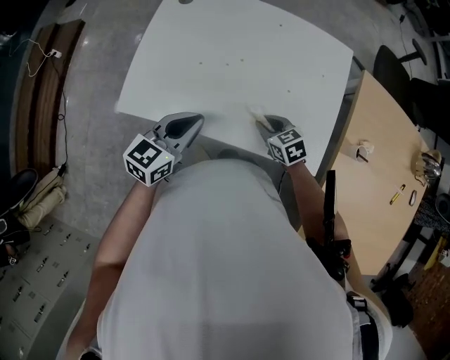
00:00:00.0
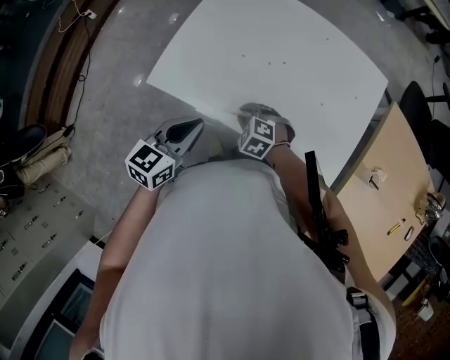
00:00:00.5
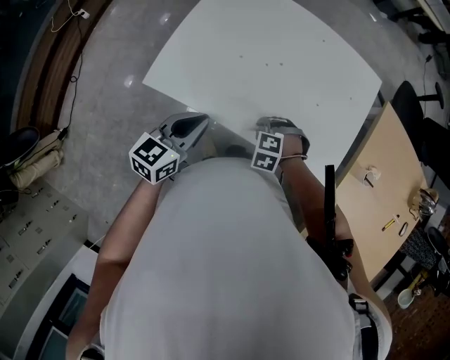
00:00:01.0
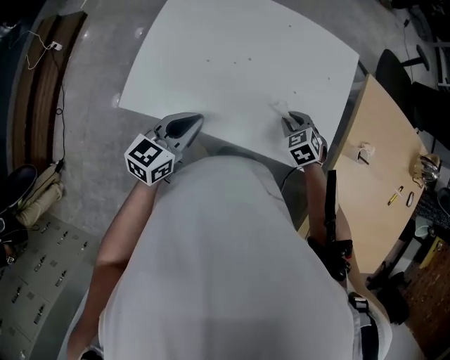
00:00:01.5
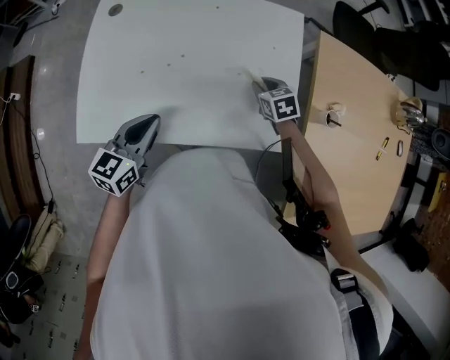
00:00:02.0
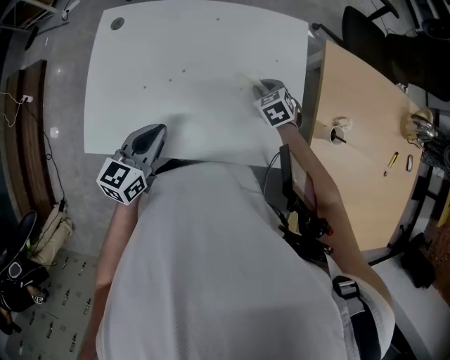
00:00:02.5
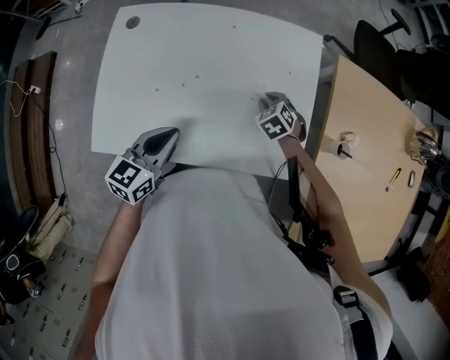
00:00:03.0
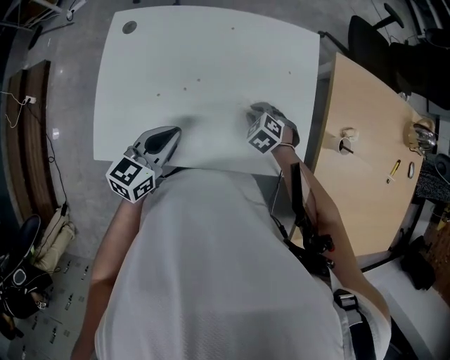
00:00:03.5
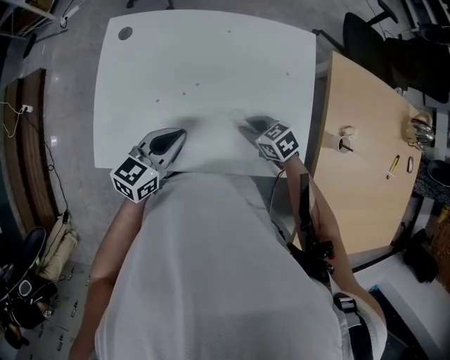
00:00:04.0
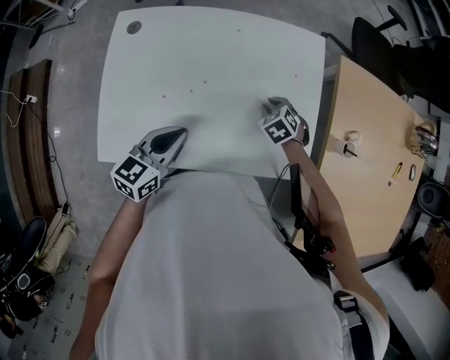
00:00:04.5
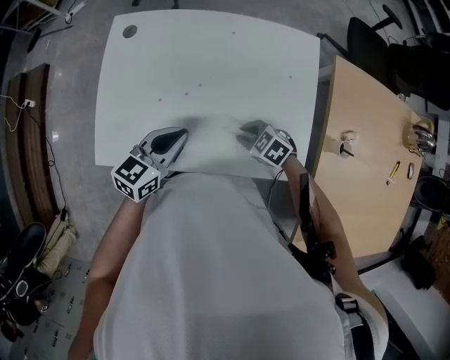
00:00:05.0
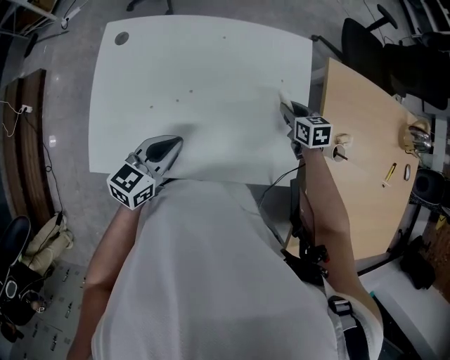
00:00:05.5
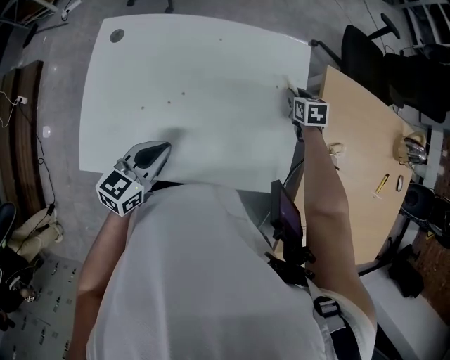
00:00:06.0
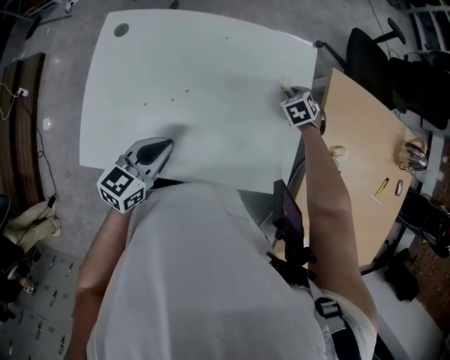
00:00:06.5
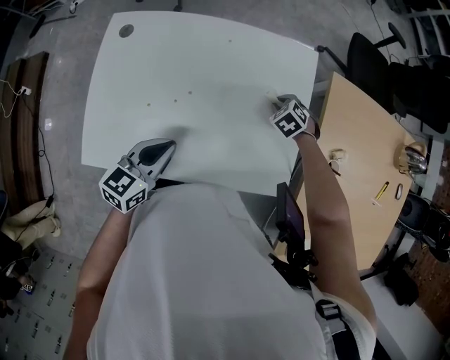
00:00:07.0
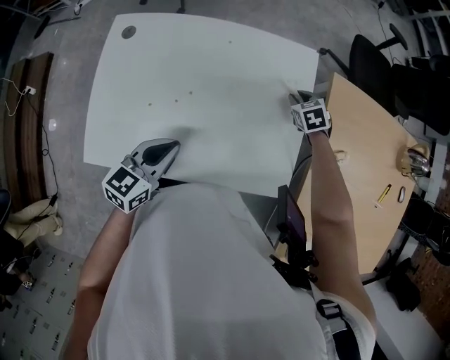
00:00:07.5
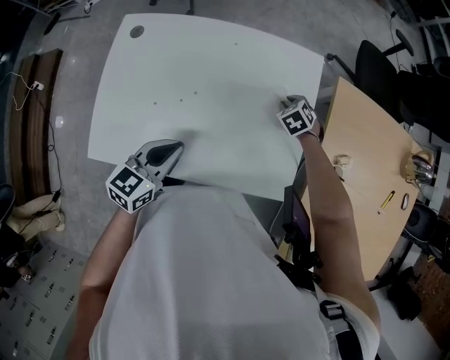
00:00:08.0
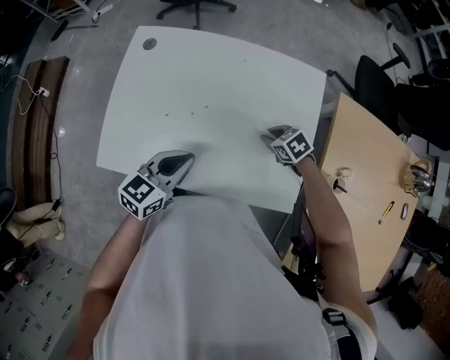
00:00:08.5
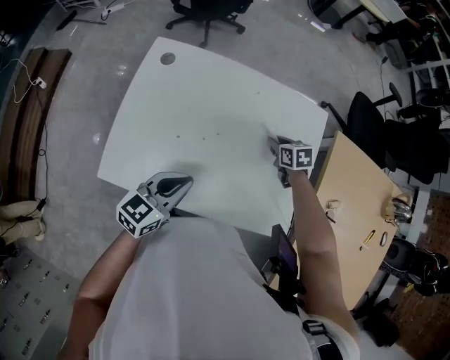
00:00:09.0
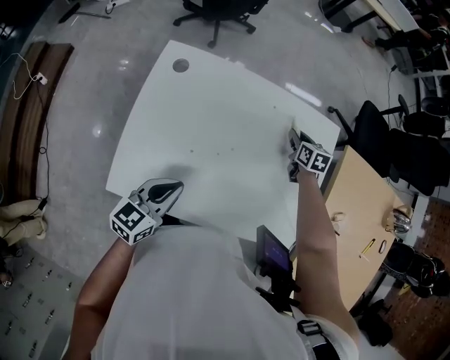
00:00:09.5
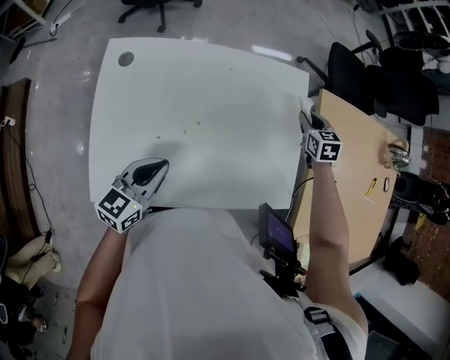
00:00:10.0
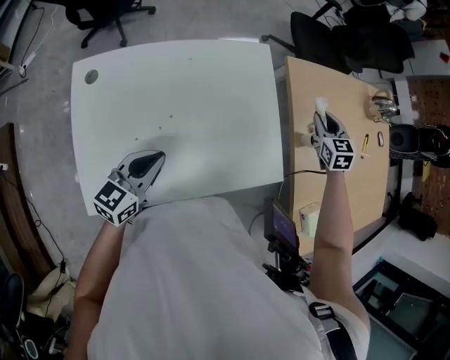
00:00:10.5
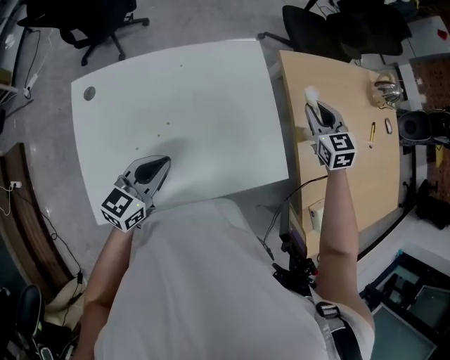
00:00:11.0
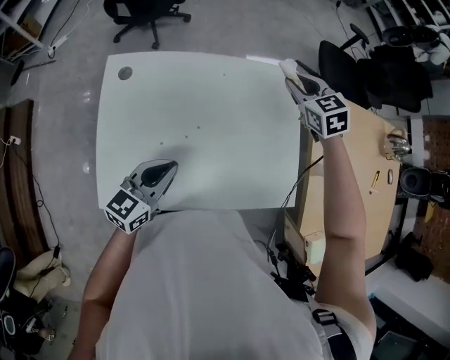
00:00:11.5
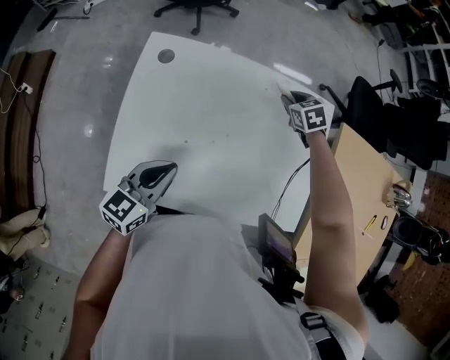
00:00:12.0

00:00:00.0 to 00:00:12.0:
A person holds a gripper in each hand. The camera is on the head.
00:00:00.0 to 00:00:02.0: The right gripper ends up roughly 15 cm from where it was, and rotates some 20 degrees.
00:00:02.0 to 00:00:04.0: The left gripper ends up some 5 cm from where it was; the right gripper is displaced to the left and backward by roughly 10 cm, and rotates approximately 20 degrees.
00:00:04.0 to 00:00:06.0: The right gripper changes place by approximately 30 cm, and changes its angle by about 40 degrees.
00:00:06.0 to 00:00:08.0: The right gripper moves to the left, roughly 5 cm, and changes its angle by roughly 40 degrees.
00:00:08.0 to 00:00:10.0: The left gripper ends up roughly 10 cm from where it was. The right gripper is displaced upward by approximately 10 cm, and rotates about 40 degrees.
00:00:10.0 to 00:00:12.0: The right gripper goes upward and returns, roughly 15 cm each way, and rotates some 30 degrees.

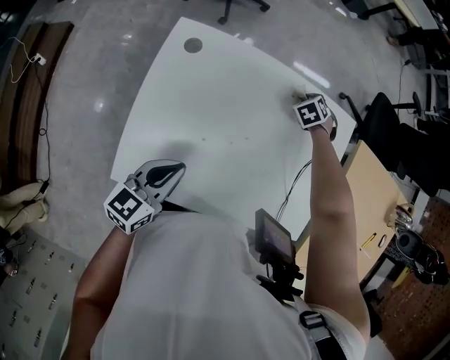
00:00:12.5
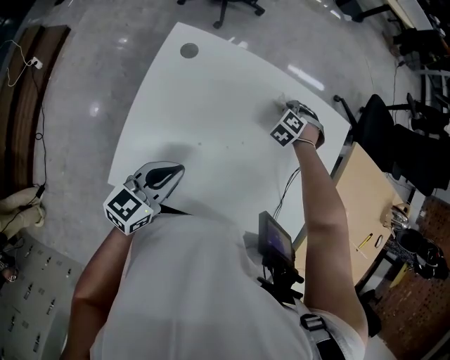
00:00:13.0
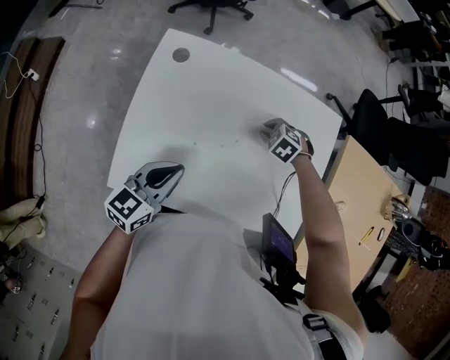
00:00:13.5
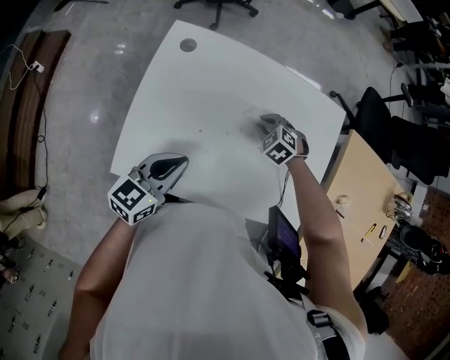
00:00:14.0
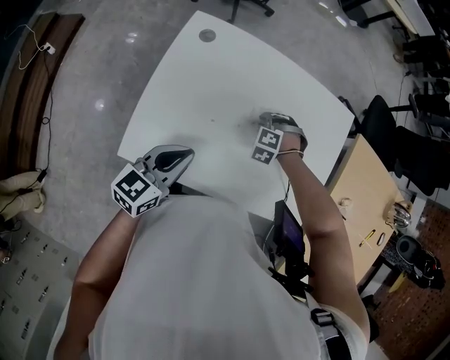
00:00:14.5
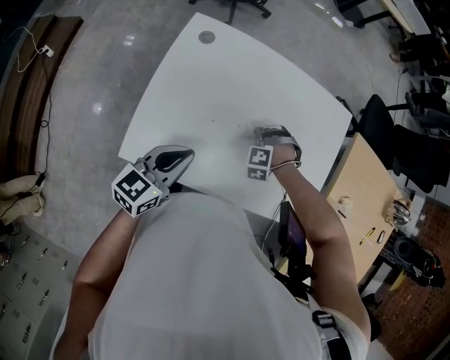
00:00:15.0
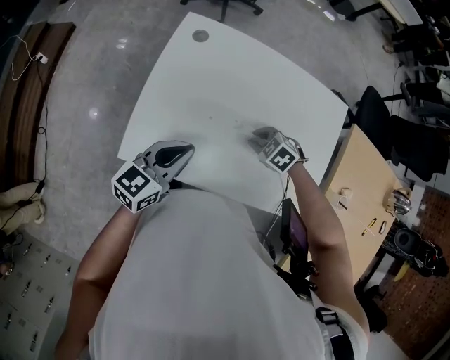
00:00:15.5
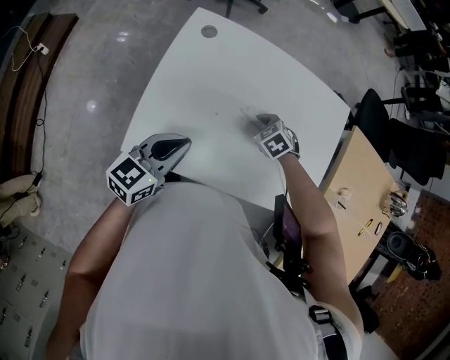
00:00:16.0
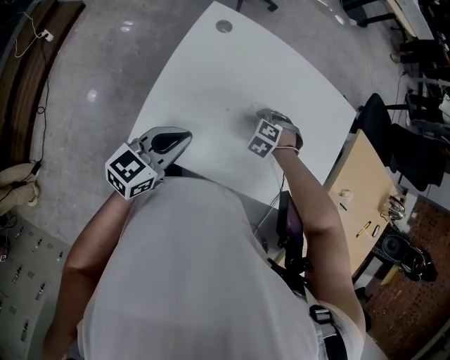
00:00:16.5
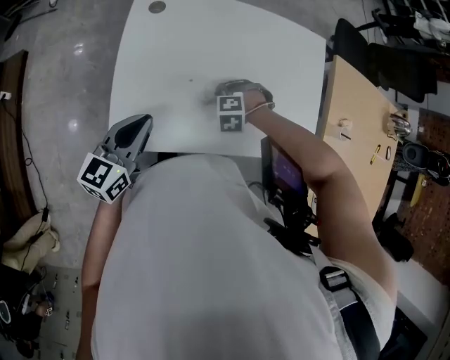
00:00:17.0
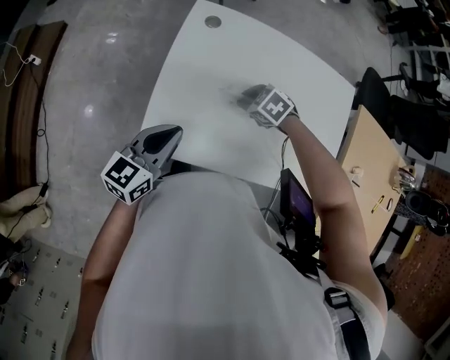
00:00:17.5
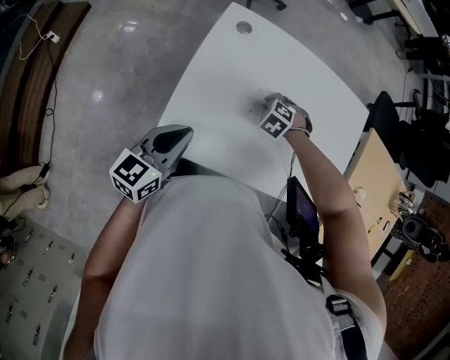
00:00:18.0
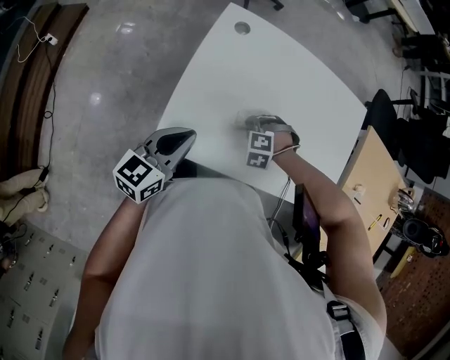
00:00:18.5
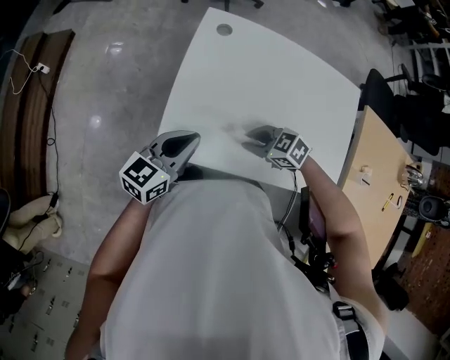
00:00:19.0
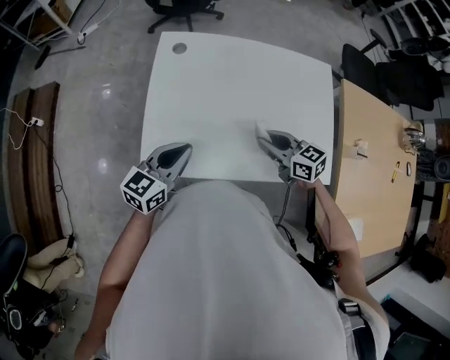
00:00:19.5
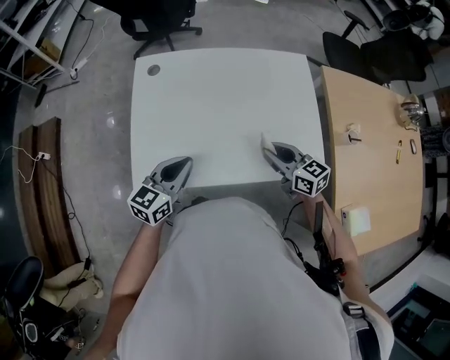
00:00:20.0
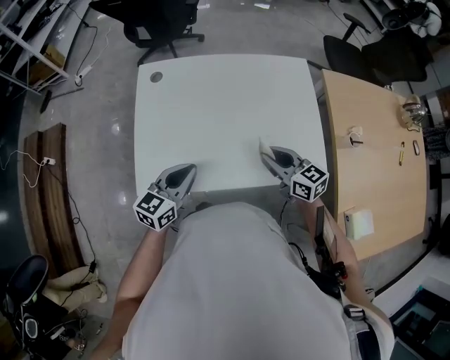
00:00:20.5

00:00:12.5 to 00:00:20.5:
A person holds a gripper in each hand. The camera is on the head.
00:00:12.5 to 00:00:14.5: The right gripper shifts by approximately 25 cm, and twists about 50 degrees counterclockwise, seen from behind.
00:00:14.5 to 00:00:16.5: The left gripper shifts by approximately 5 cm.
00:00:16.5 to 00:00:18.5: The left gripper changes place by approximately 5 cm. The right gripper moves roughly 10 cm.
00:00:18.5 to 00:00:20.5: The right gripper ends up approximately 25 cm from where it was, and tips its fingers upward by roughly 60 degrees. The left gripper changes place by approximately 15 cm.

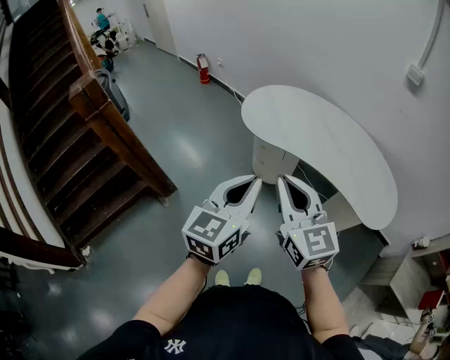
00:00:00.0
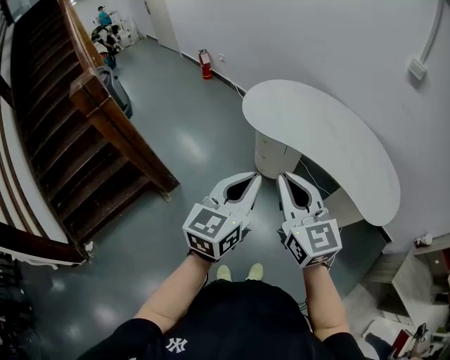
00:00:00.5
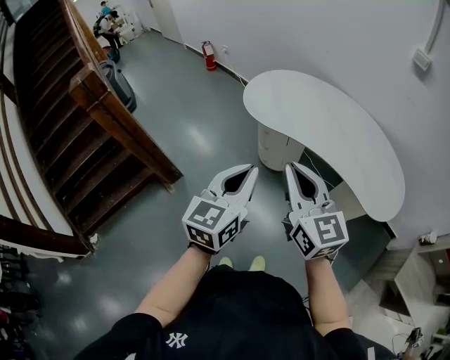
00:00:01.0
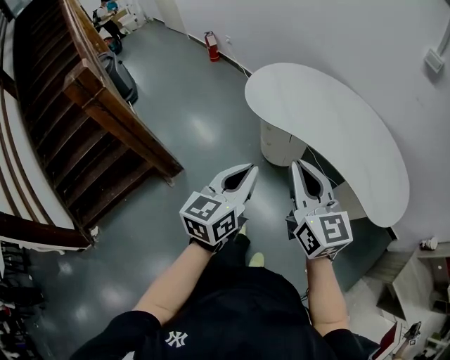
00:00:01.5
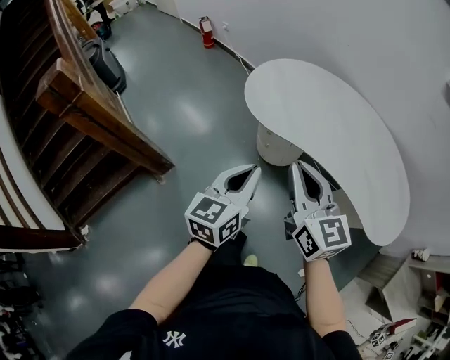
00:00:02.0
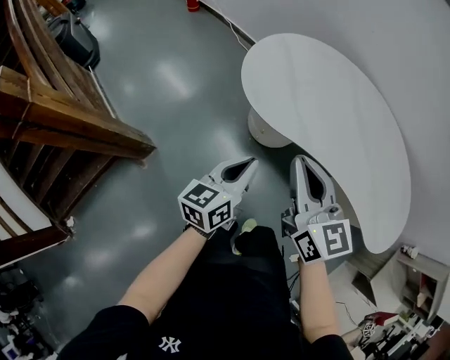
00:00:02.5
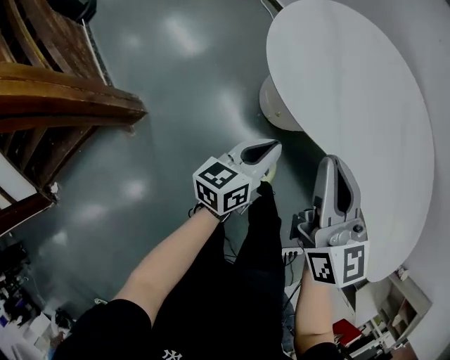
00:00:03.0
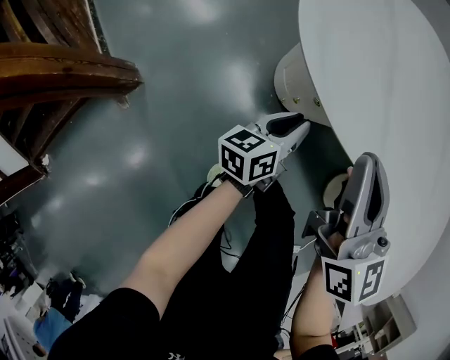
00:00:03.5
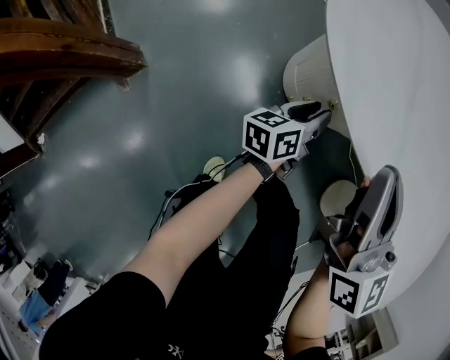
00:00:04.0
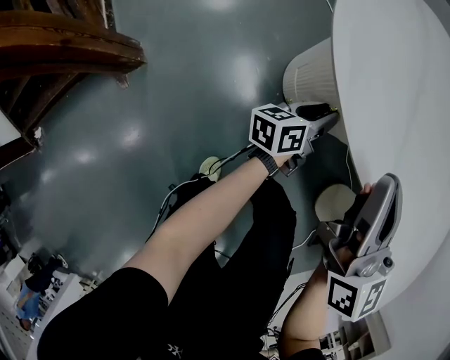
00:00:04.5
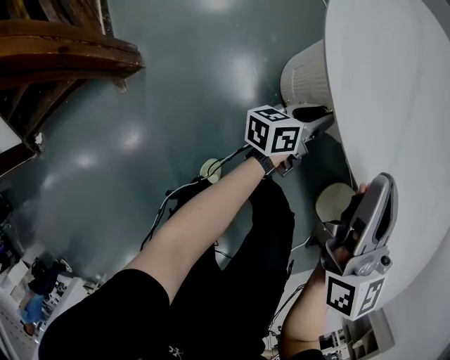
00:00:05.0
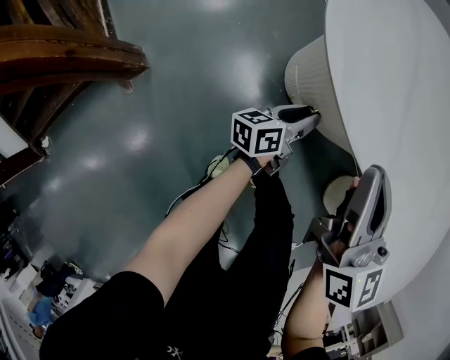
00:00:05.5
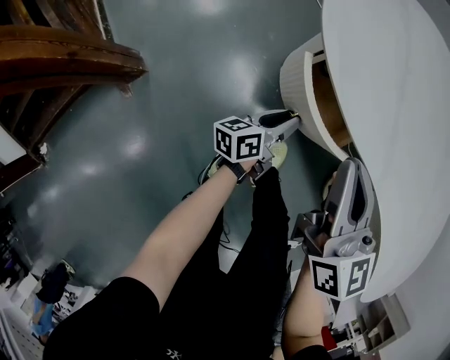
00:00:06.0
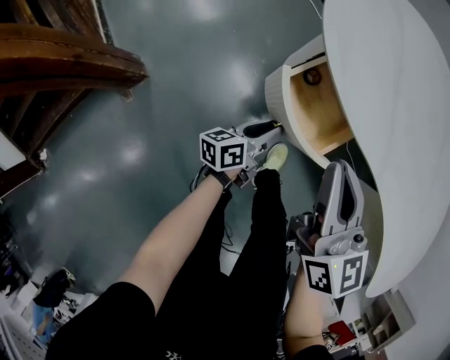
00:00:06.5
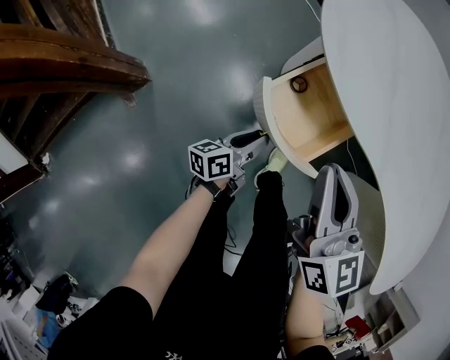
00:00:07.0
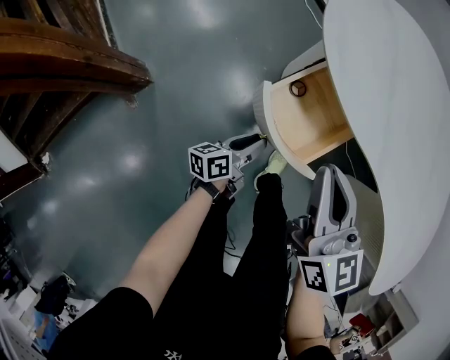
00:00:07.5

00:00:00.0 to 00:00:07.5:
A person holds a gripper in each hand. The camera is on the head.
00:00:00.0 to 00:00:02.0: The grippers both shift forward and downward by some 20 cm.
00:00:02.0 to 00:00:04.0: Both grippers travel together downward and forward, some 50 cm. The left gripper swivels roughly 40 degrees, and opens.
00:00:04.0 to 00:00:05.5: The grippers move only a little.
00:00:05.5 to 00:00:07.5: The left gripper shifts some 20 cm backward and to the left. The right gripper moves backward and to the left, about 10 cm.
